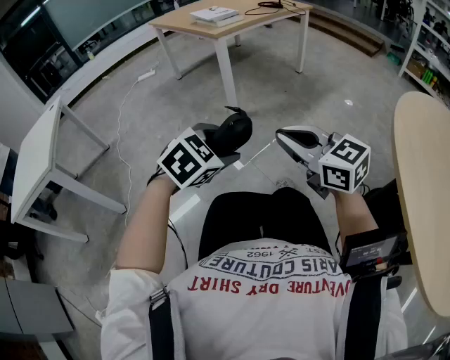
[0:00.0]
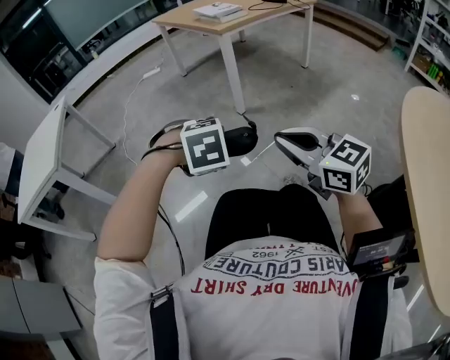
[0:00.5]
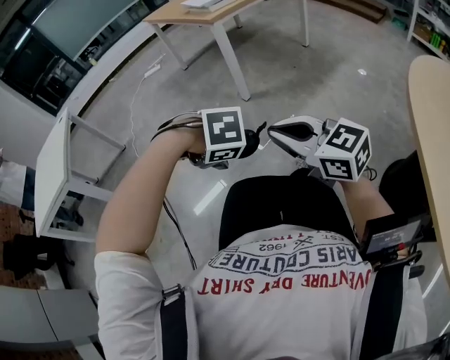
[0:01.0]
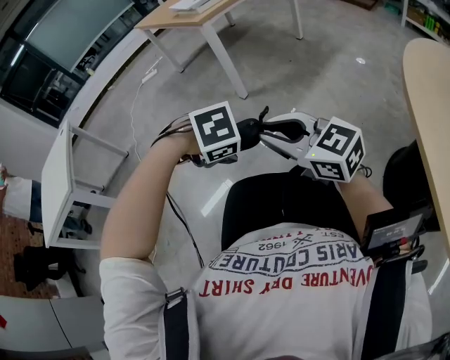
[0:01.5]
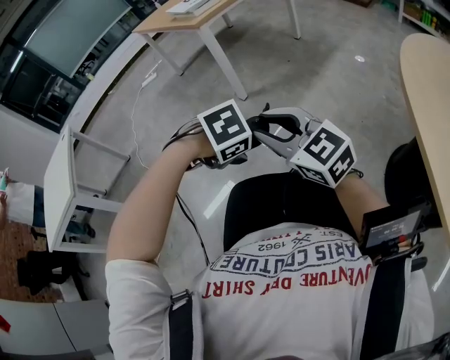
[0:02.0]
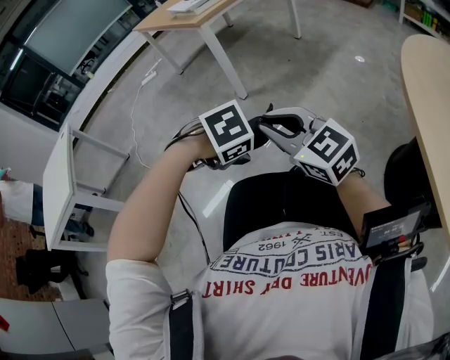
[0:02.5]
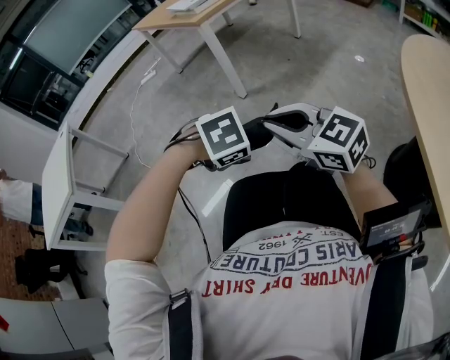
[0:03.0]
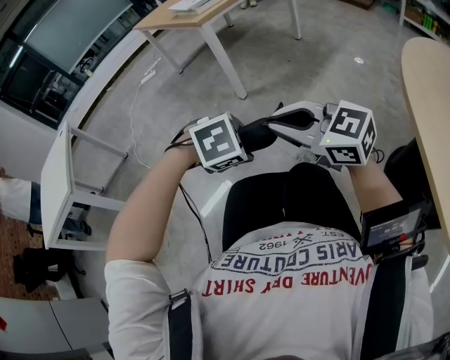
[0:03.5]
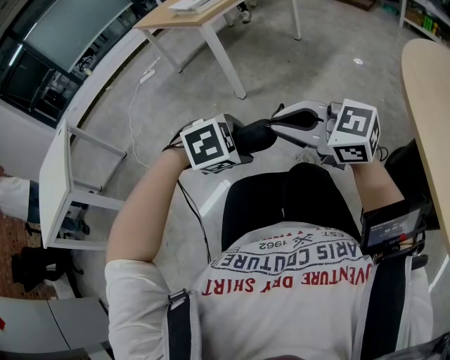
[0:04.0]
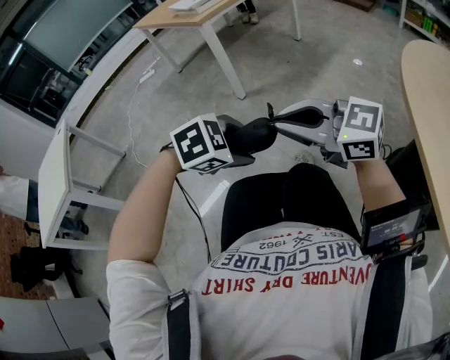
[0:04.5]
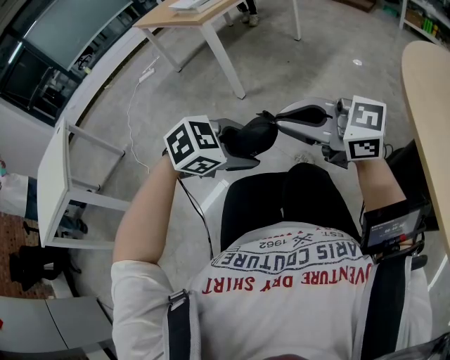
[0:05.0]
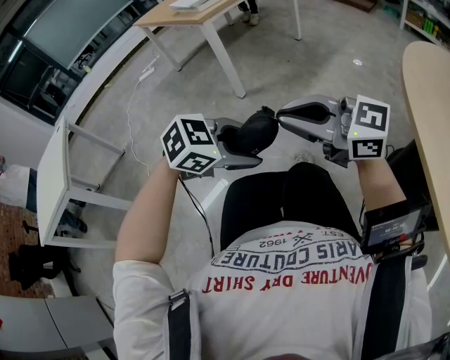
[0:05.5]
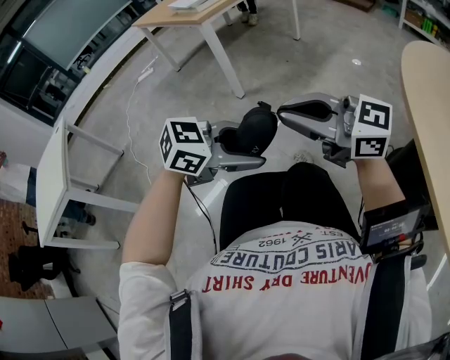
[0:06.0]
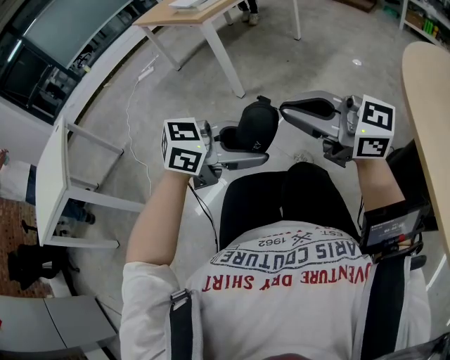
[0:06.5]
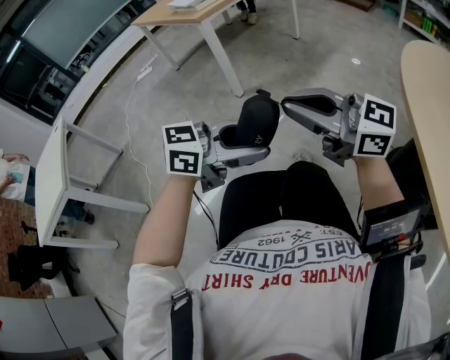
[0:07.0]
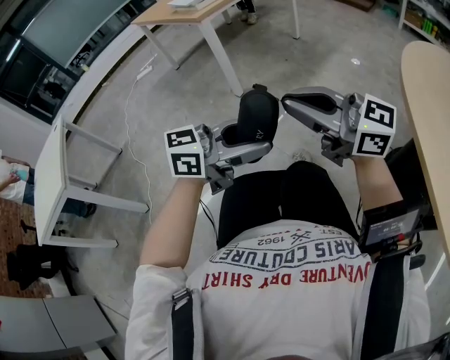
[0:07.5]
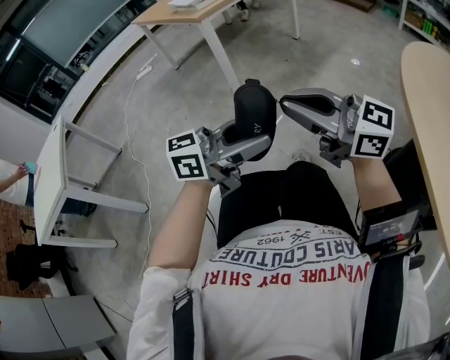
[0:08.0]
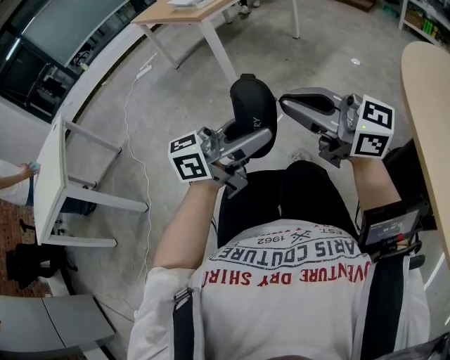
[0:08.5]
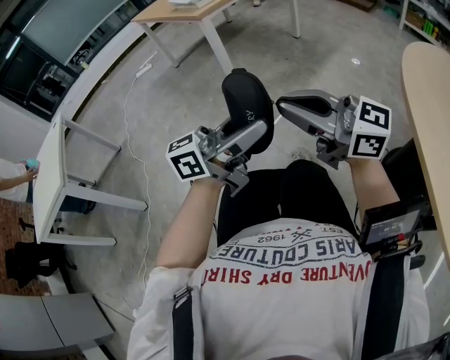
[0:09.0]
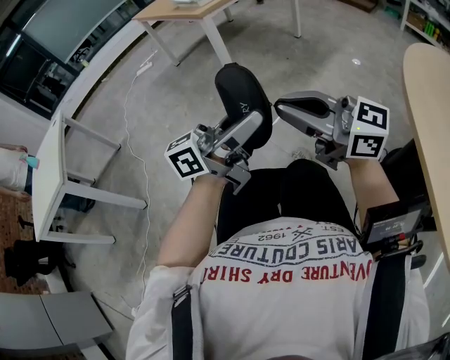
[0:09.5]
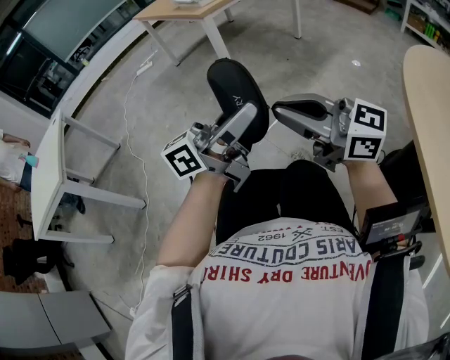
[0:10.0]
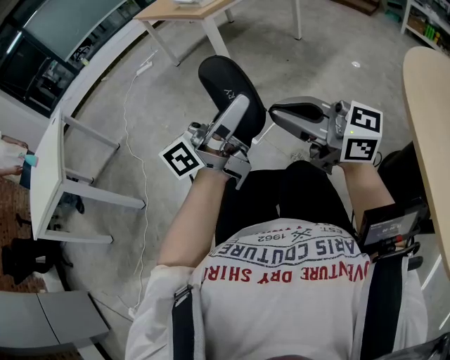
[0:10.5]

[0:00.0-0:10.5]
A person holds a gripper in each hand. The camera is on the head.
0:00.0 to 0:02.0: The right gripper opens up, while the left gripper heads downward, covering roughly 5 cm, and points its fingers approximately 40 degrees further downward.
0:02.0 to 0:04.0: The left gripper changes its angle by approximately 20 degrees, while the right gripper closes.
0:04.0 to 0:06.5: The left gripper shifts approximately 5 cm upward, and tips its fingers upward by some 50 degrees; the right gripper moves about 5 cm.
0:06.5 to 0:08.5: The left gripper ends up roughly 5 cm from where it was, and points its fingers about 30 degrees further upward.
0:08.5 to 0:10.5: The left gripper is displaced upward by about 5 cm, and turns by some 20 degrees.

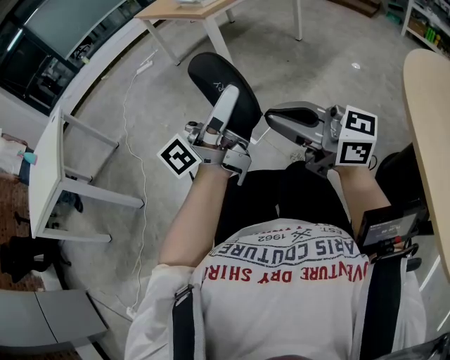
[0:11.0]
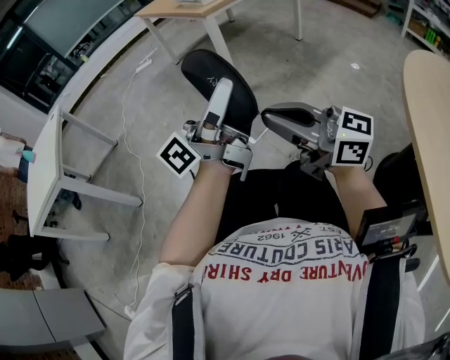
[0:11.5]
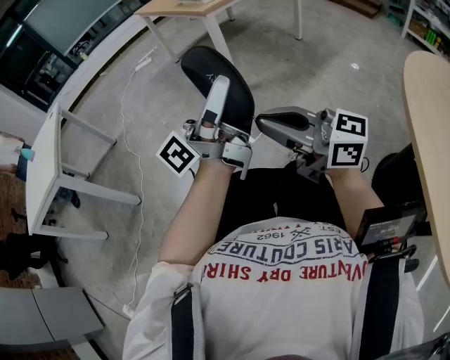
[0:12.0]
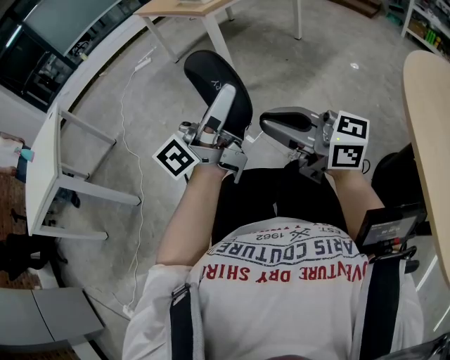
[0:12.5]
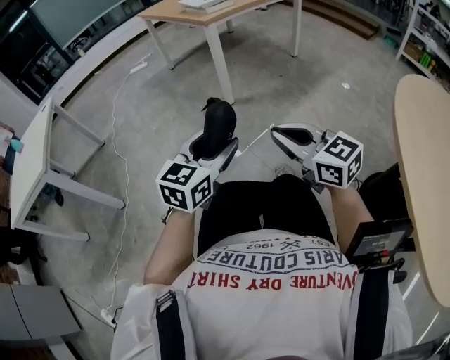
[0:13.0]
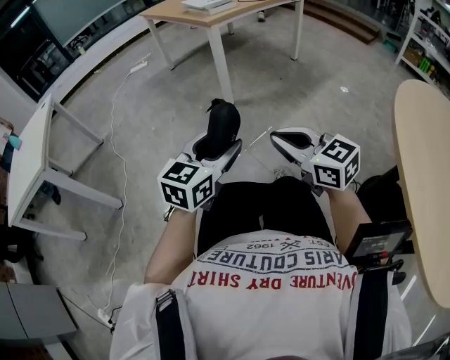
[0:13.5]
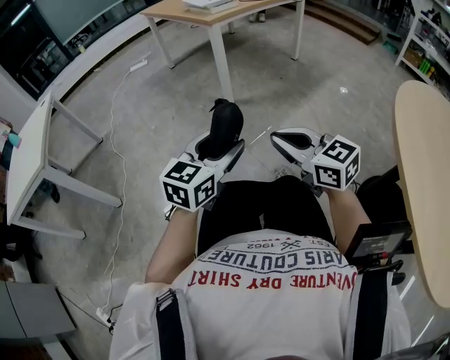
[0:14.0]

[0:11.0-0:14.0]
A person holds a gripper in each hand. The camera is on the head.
0:11.0 to 0:12.5: The grippers make only small movements.
0:12.5 to 0:14.0: The right gripper moves downward, about 5 cm, and turns by approximately 30 degrees, while the left gripper moves downward, approximately 15 cm, and tilts its fingers approximately 40 degrees downward.

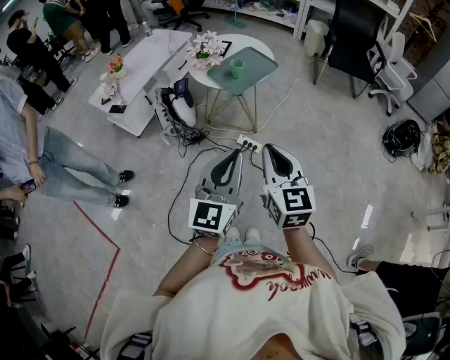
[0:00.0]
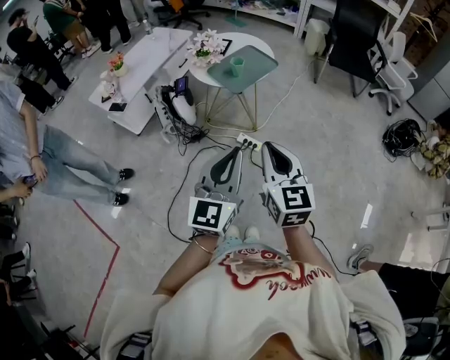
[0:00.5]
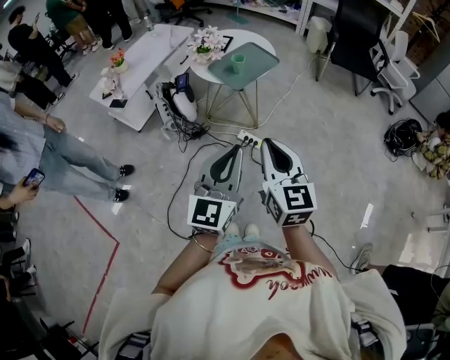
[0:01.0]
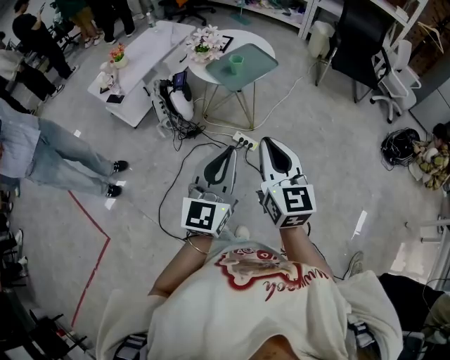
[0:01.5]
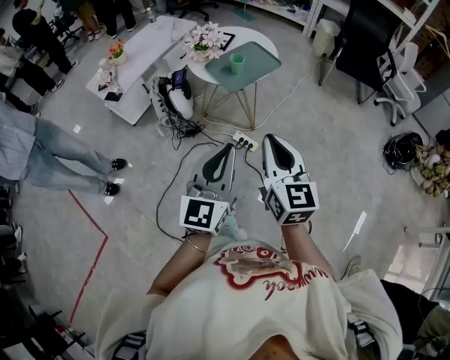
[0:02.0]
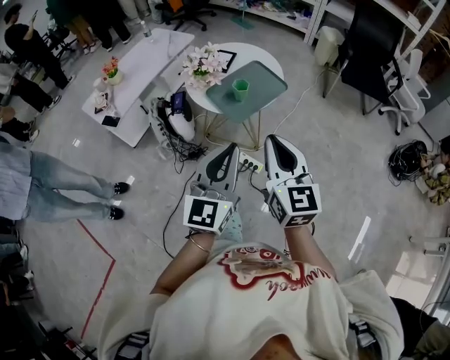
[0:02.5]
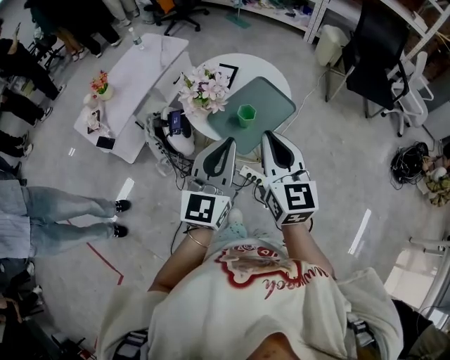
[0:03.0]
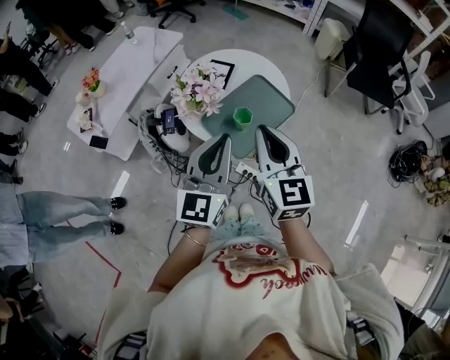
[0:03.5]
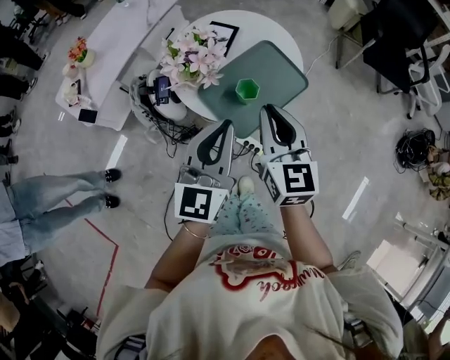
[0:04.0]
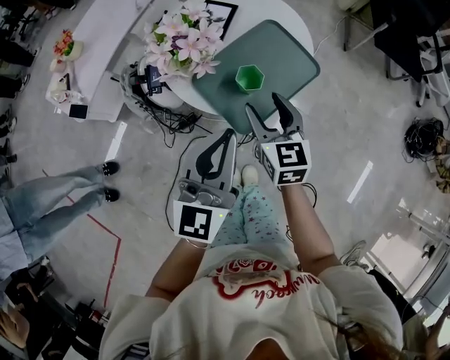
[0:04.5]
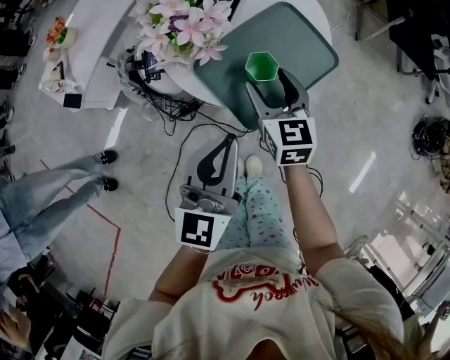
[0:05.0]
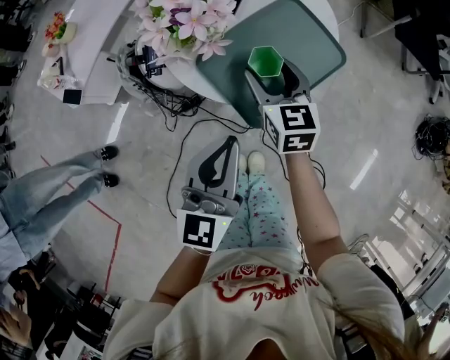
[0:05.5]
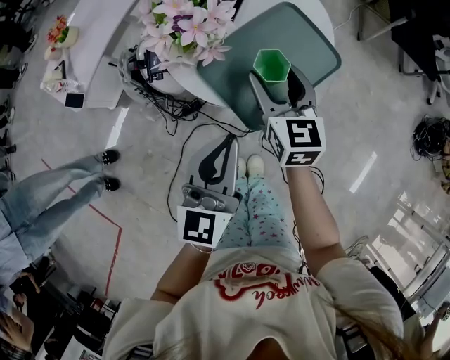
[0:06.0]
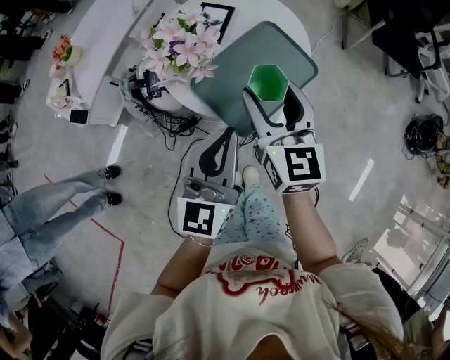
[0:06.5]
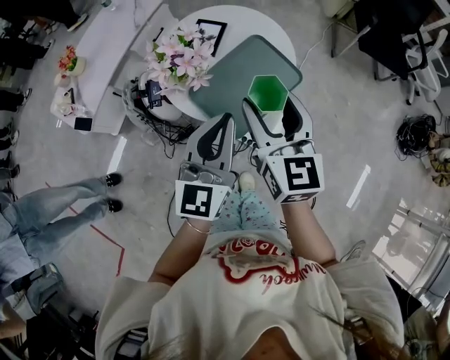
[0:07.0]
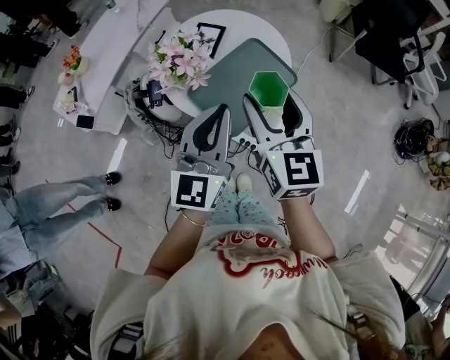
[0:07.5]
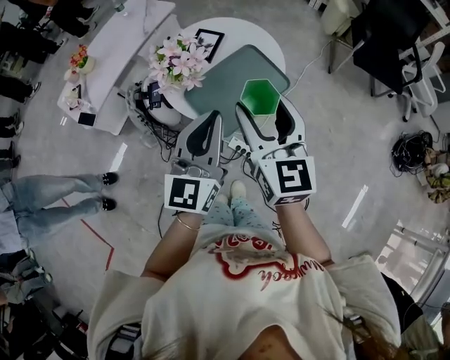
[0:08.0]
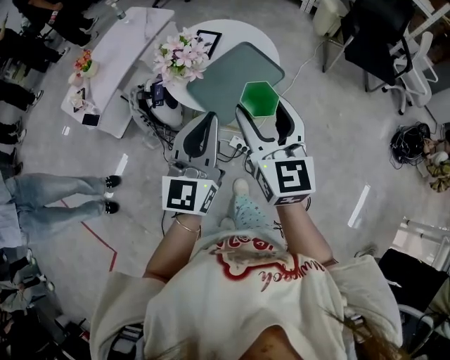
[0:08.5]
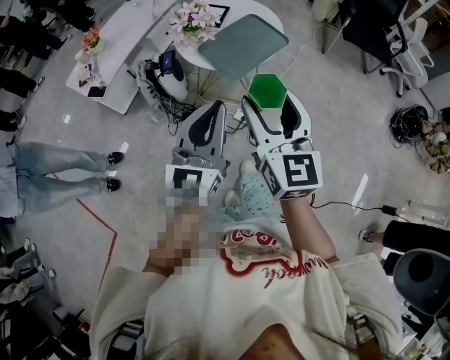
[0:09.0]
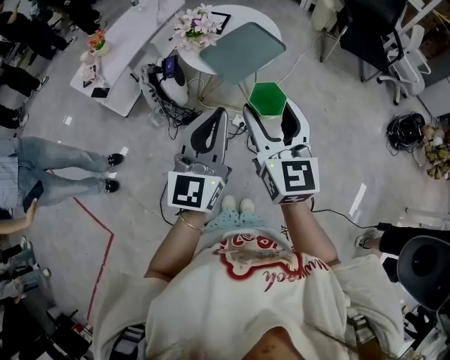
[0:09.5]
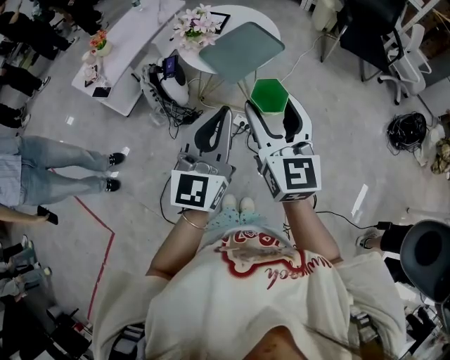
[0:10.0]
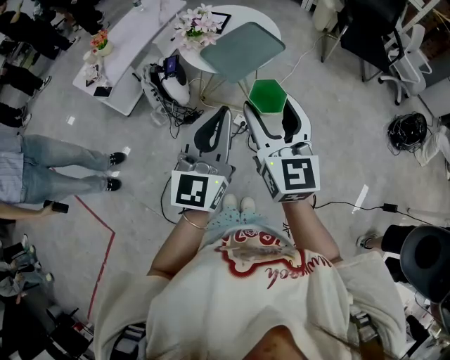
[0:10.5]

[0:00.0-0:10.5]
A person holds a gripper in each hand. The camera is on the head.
0:00.0 to 0:02.0: The right gripper travels forward by about 5 cm.
0:02.0 to 0:04.0: The two grippers go some 40 cm forward.
0:04.0 to 0:06.5: The right gripper is displaced forward by some 5 cm, travels downward and back again, about 20 cm each way, and opens its fingers. Meanwhile the left gripper moves downward, some 5 cm.
0:06.5 to 0:08.5: The left gripper is displaced upward and backward by roughly 15 cm; the right gripper moves backward and upward, some 20 cm.
0:08.5 to 0:10.5: The grippers both shift backward by some 20 cm.

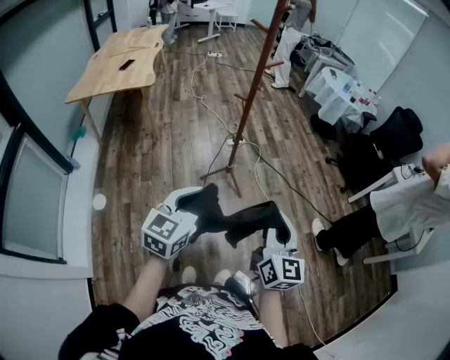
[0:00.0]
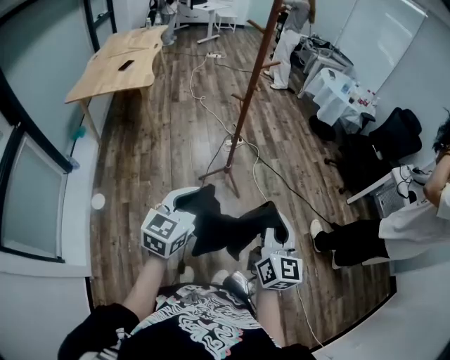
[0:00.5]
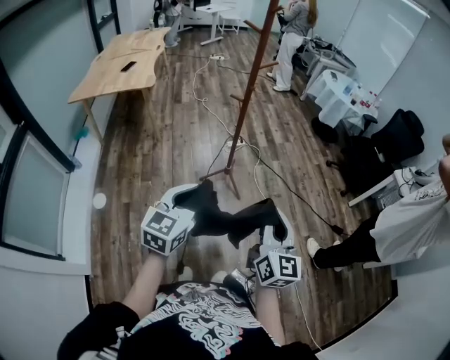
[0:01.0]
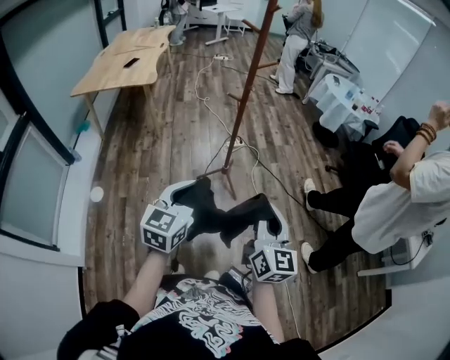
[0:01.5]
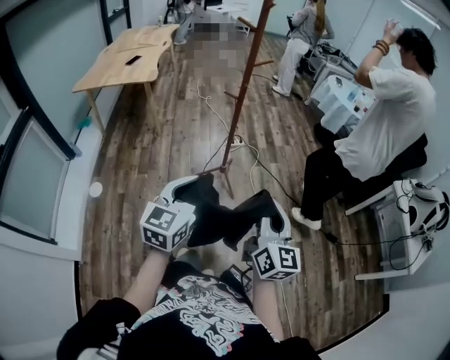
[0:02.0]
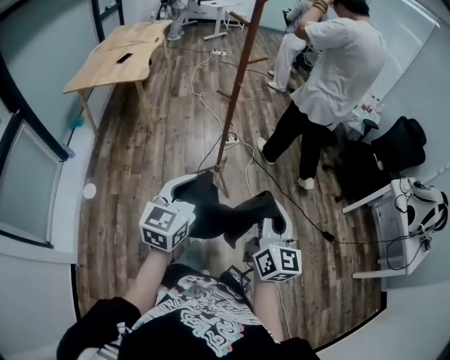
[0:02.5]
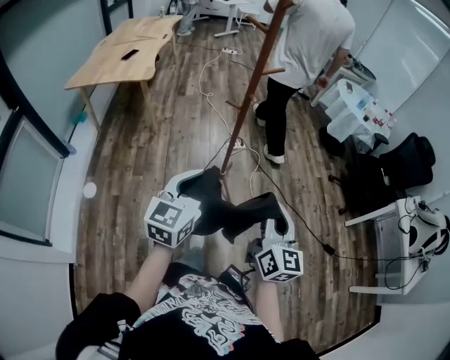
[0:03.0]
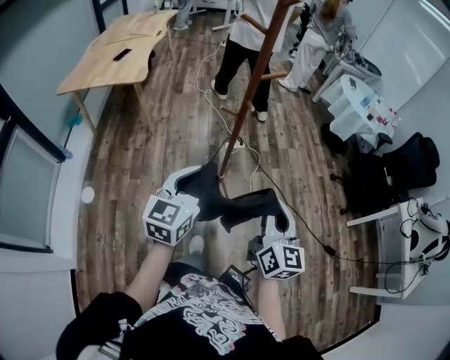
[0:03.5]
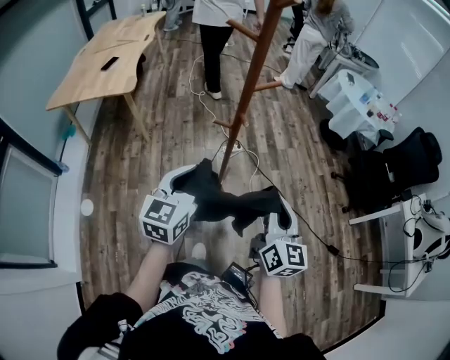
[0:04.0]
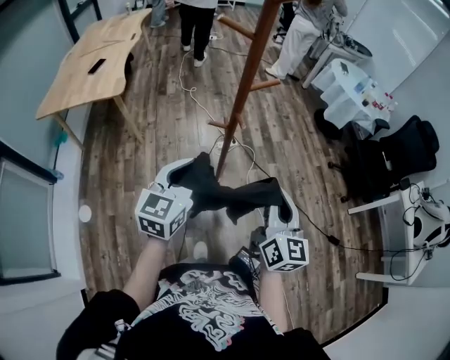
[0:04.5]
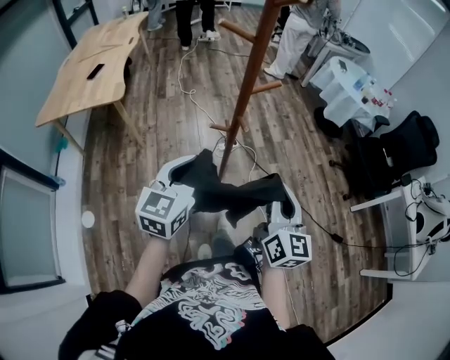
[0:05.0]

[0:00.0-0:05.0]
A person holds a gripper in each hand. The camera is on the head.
0:00.0 to 0:02.5: The two grippers go some 15 cm to the right and forward.
0:02.5 to 0:05.0: Both grippers travel together forward, approximately 35 cm.
